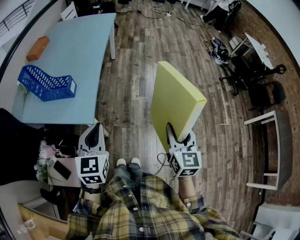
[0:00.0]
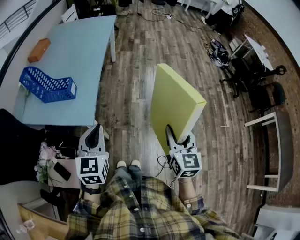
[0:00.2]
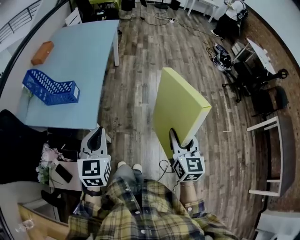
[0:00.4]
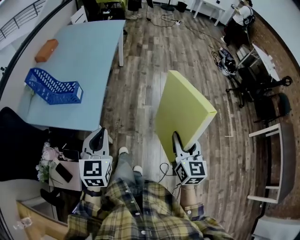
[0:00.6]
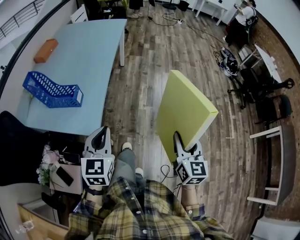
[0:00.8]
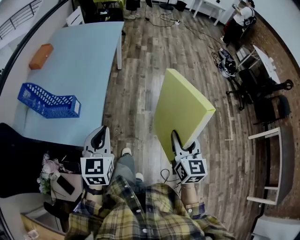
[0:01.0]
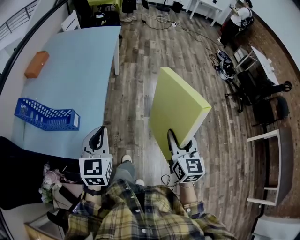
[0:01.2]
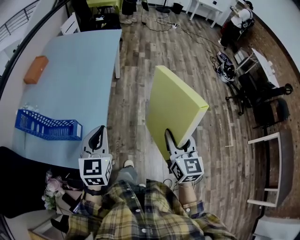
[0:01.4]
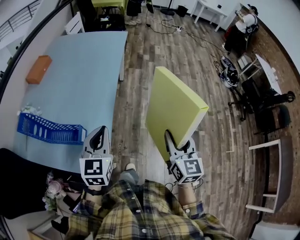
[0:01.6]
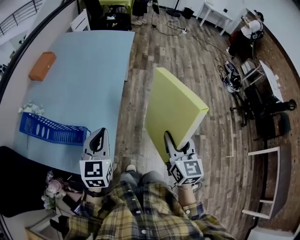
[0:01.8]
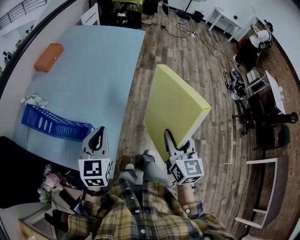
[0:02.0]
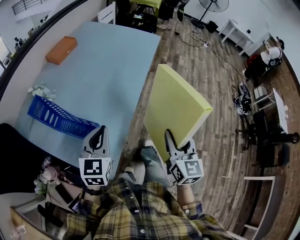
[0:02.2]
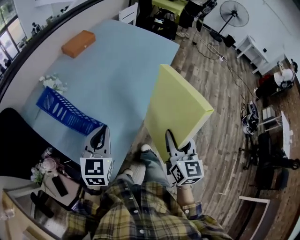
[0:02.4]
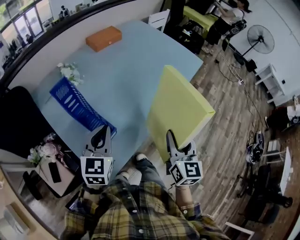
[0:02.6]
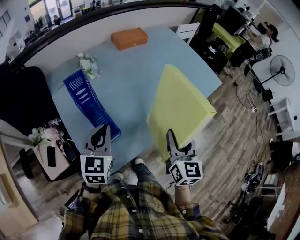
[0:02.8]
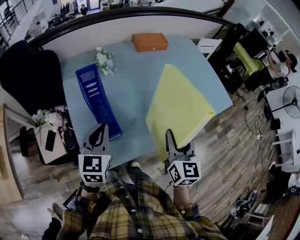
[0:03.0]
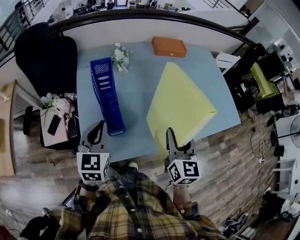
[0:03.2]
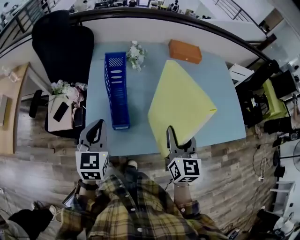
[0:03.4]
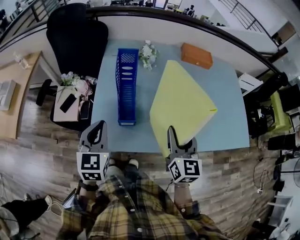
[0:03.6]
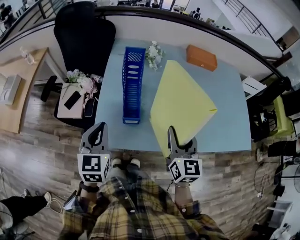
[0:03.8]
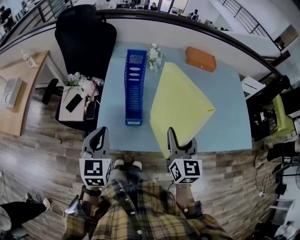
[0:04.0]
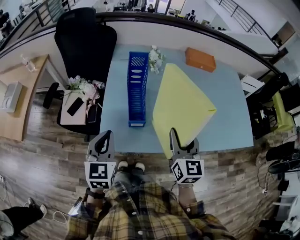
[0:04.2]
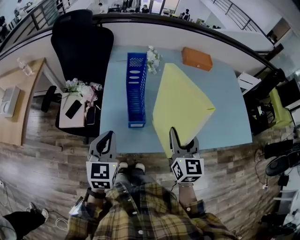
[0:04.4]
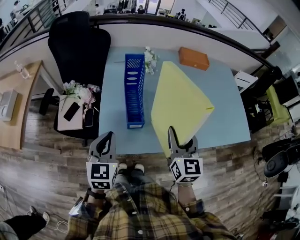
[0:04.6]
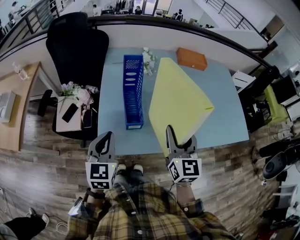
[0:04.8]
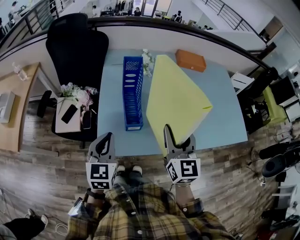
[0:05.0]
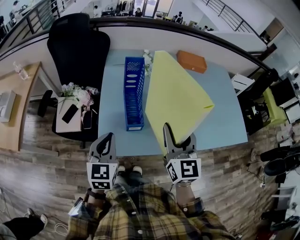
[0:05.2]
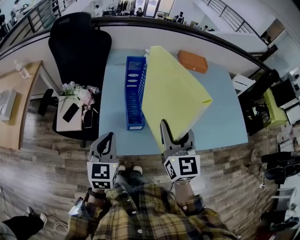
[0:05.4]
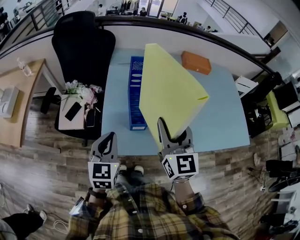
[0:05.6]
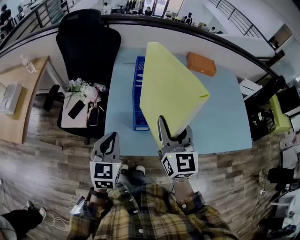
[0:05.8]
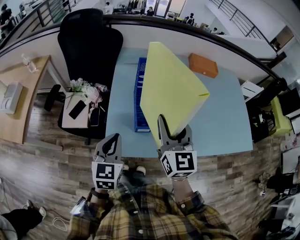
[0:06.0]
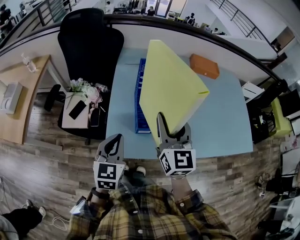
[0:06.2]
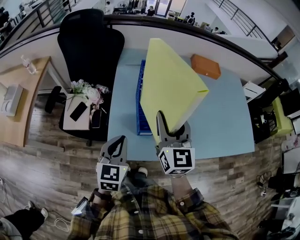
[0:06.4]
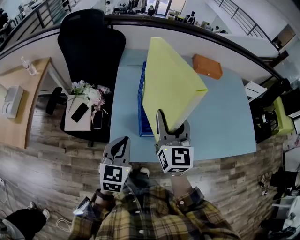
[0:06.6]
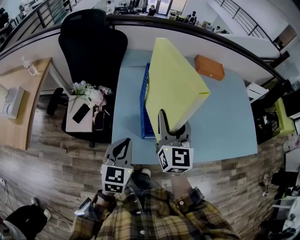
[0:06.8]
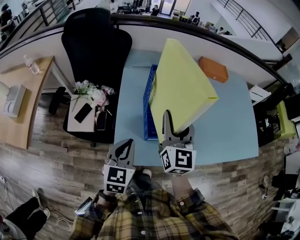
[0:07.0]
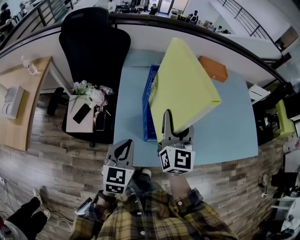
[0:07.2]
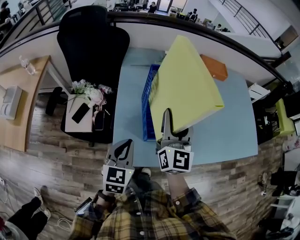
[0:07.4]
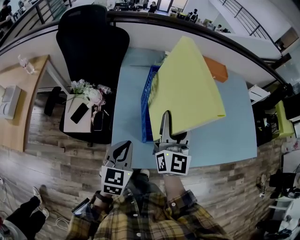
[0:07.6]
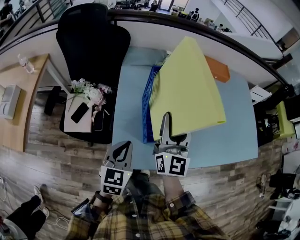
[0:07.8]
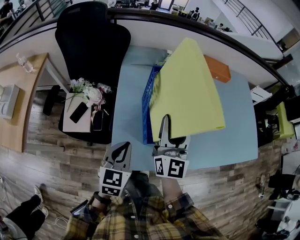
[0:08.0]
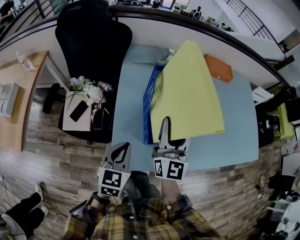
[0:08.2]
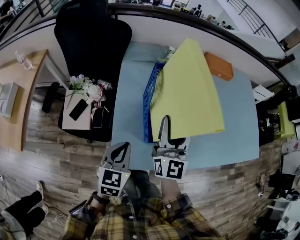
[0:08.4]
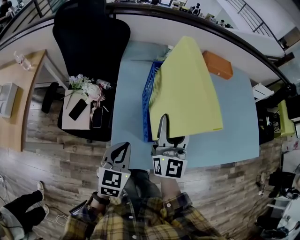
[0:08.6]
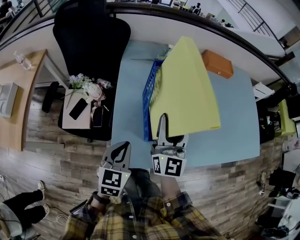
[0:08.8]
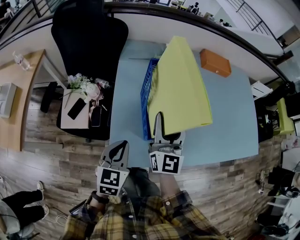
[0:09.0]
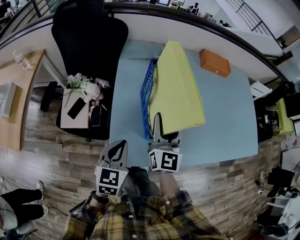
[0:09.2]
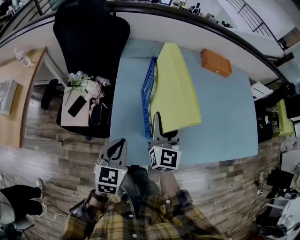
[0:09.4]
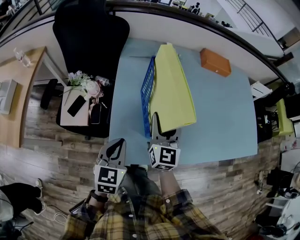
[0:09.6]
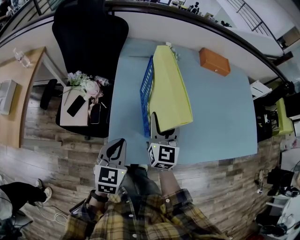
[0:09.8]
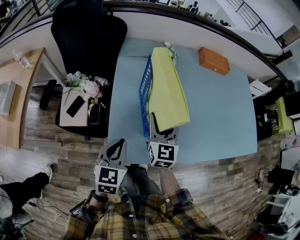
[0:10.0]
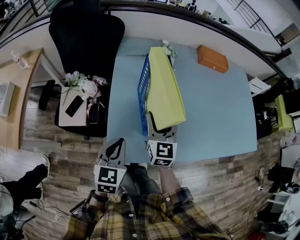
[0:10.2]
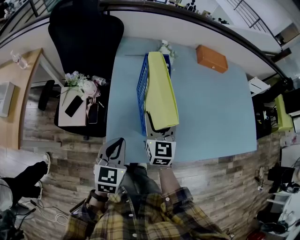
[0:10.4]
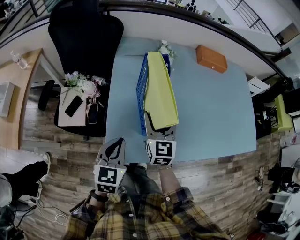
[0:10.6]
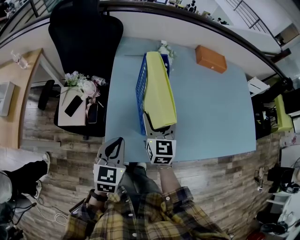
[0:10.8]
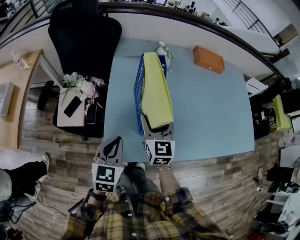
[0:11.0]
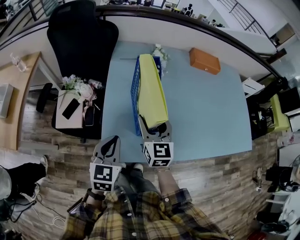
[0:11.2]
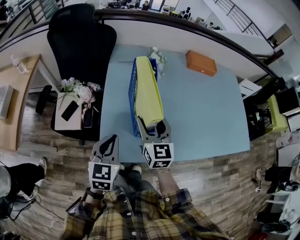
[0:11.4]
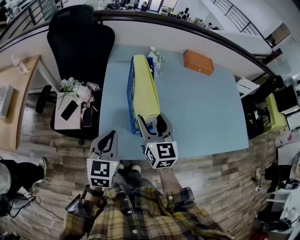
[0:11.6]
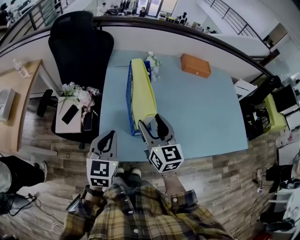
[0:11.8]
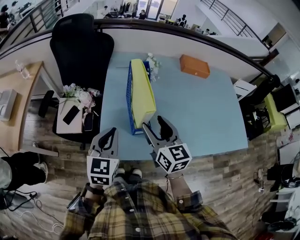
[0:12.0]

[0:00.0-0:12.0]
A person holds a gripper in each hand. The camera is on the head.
0:00.0 to 0:01.6: The two grippers go approximately 25 cm forward.
0:01.6 to 0:03.0: The right gripper changes place by about 35 cm, and turns by about 60 degrees, while the left gripper ends up some 20 cm from where it was, and turns by about 60 degrees.
0:03.0 to 0:04.4: The left gripper ends up roughly 15 cm from where it was, and turns by some 20 degrees, while the right gripper changes place by approximately 10 cm, and changes its angle by approximately 30 degrees.
0:04.4 to 0:06.0: The right gripper heads to the left and upward, covering approximately 10 cm.
0:06.0 to 0:07.6: The right gripper moves forward, some 5 cm, while the left gripper shifts by some 5 cm.
0:07.6 to 0:09.0: The right gripper is displaced downward by about 5 cm.
0:09.0 to 0:10.4: The right gripper shifts roughly 10 cm downward, and changes its angle by approximately 20 degrees.
0:10.4 to 0:12.0: The left gripper heads upward, covering about 10 cm, while the right gripper goes approximately 10 cm upward and backward.

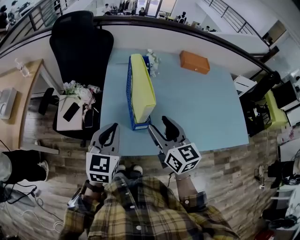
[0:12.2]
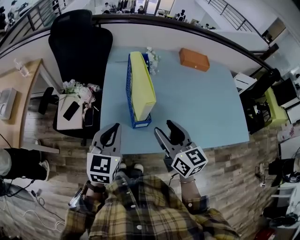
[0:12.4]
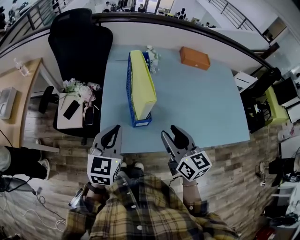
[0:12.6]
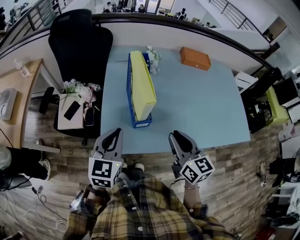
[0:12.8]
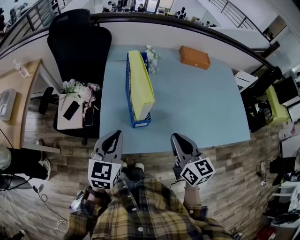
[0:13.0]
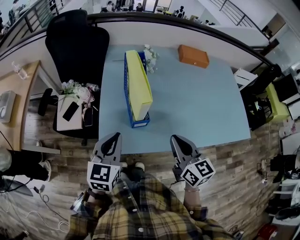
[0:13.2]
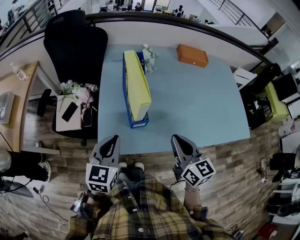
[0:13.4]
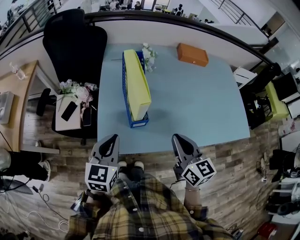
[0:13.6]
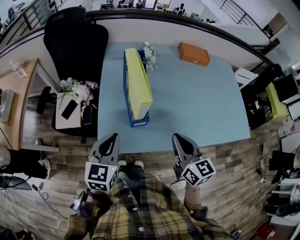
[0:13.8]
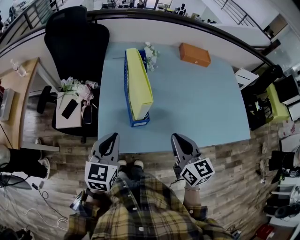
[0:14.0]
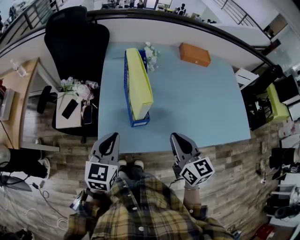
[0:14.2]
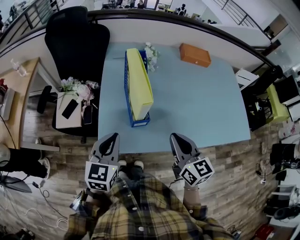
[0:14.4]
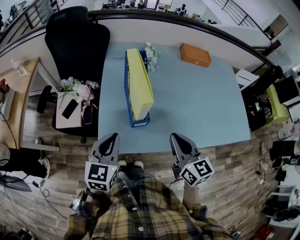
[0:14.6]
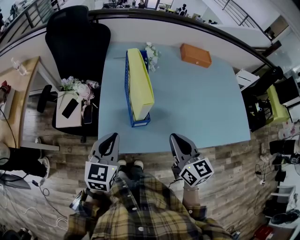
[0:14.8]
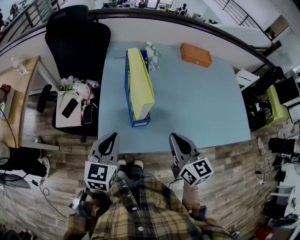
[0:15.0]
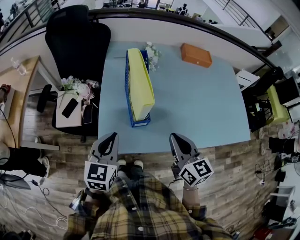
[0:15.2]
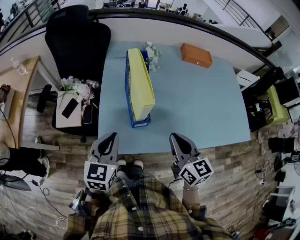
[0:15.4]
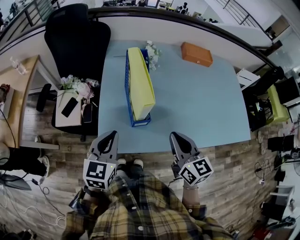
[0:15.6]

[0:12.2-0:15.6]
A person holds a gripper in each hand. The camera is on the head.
0:12.2 to 0:13.8: The right gripper shifts about 10 cm to the right and backward, and closes its fingers.
0:13.8 to 0:15.6: The grippers make only small movements.

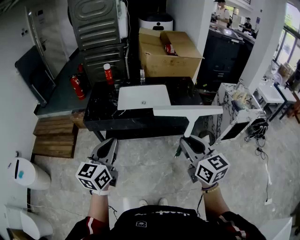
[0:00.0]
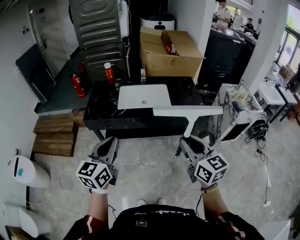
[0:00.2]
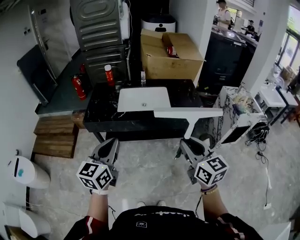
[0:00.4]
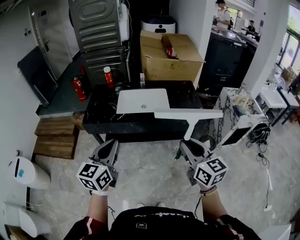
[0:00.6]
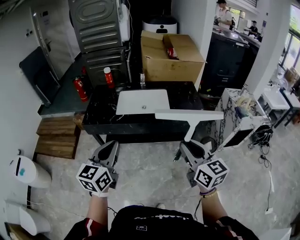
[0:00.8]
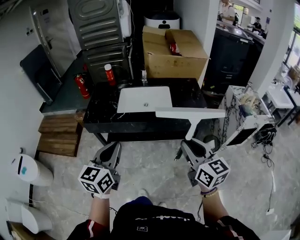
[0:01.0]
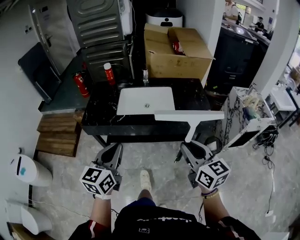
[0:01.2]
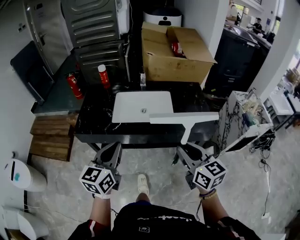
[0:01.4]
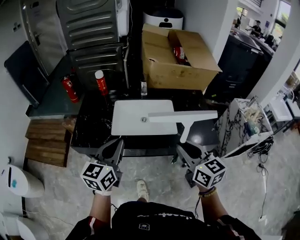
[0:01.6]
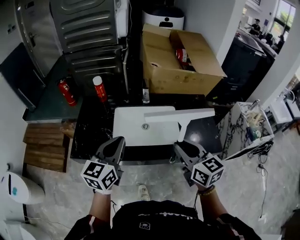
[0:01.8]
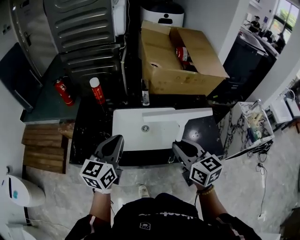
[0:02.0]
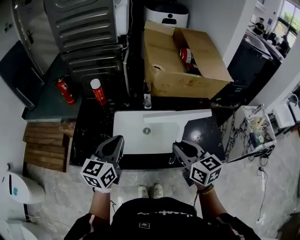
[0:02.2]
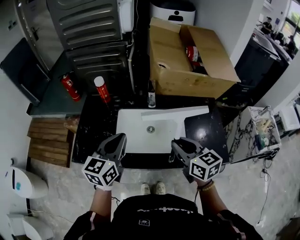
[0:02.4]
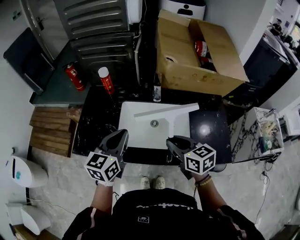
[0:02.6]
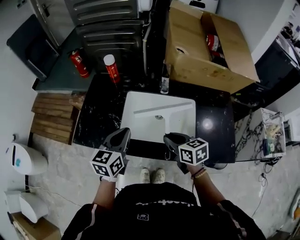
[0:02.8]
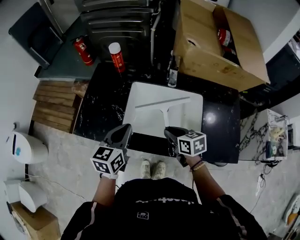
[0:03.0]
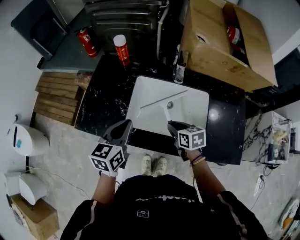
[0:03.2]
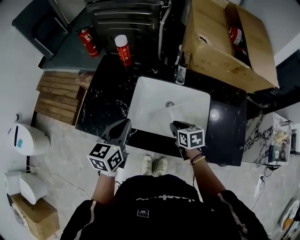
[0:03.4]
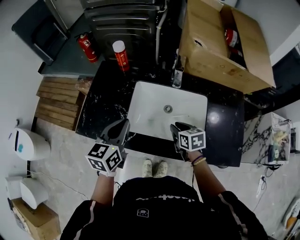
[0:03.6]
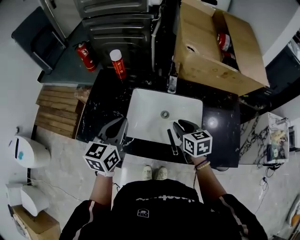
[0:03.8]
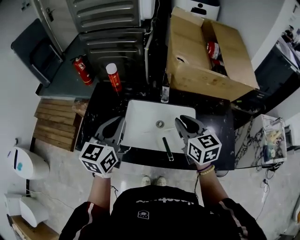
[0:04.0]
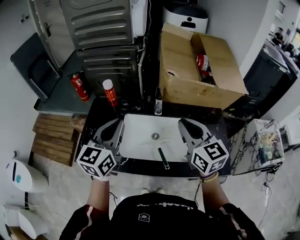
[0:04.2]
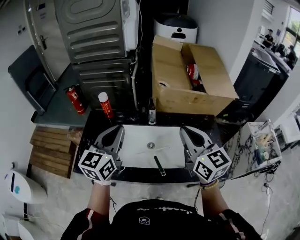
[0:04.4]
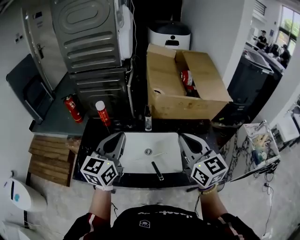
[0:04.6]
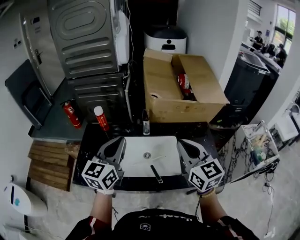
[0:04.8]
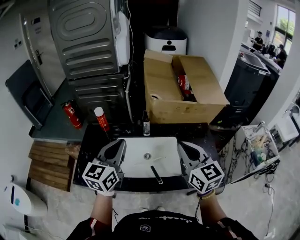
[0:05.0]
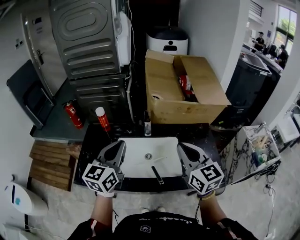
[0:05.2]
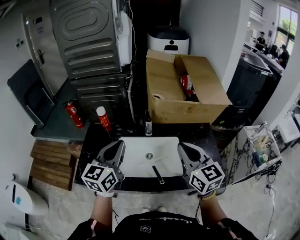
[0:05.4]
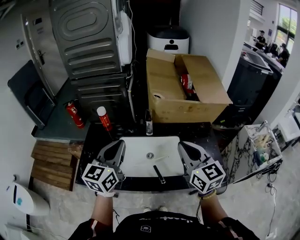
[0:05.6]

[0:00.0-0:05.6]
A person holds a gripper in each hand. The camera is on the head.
0:00.0 to 0:01.4: Both grippers move forward, approximately 20 cm.
0:01.4 to 0:02.8: The right gripper moves forward and downward, roughly 35 cm, and rotates about 30 degrees; the left gripper travels forward by some 30 cm.
0:02.8 to 0:04.2: Both grippers move upward, some 20 cm. The right gripper rotates some 40 degrees.
0:04.2 to 0:05.6: The right gripper shifts by about 5 cm.

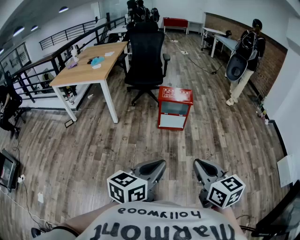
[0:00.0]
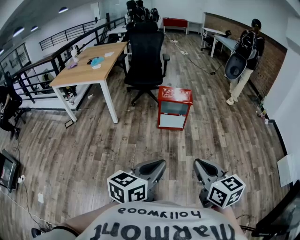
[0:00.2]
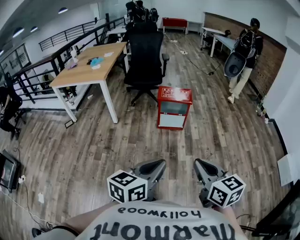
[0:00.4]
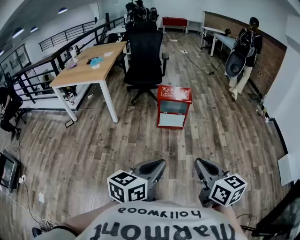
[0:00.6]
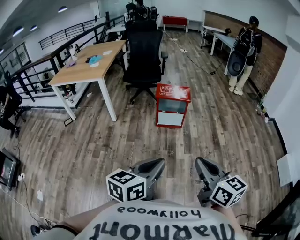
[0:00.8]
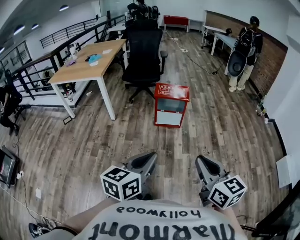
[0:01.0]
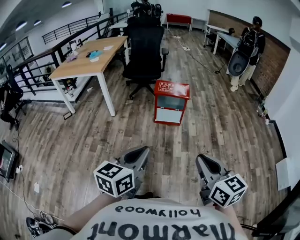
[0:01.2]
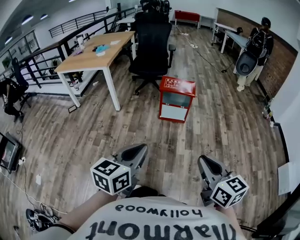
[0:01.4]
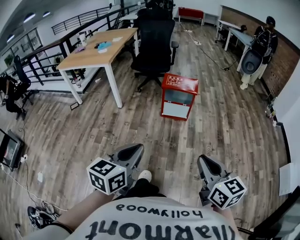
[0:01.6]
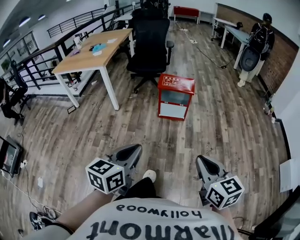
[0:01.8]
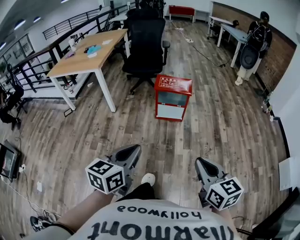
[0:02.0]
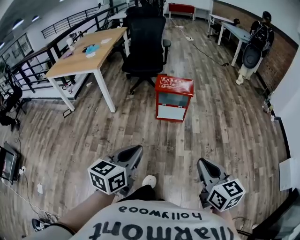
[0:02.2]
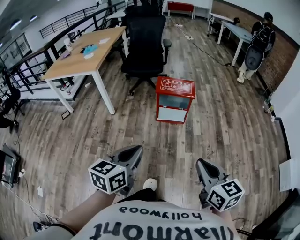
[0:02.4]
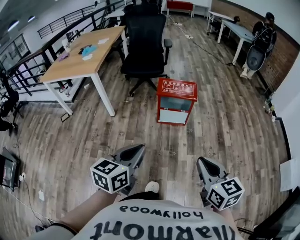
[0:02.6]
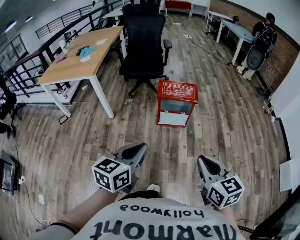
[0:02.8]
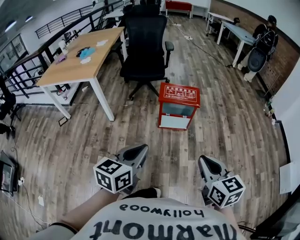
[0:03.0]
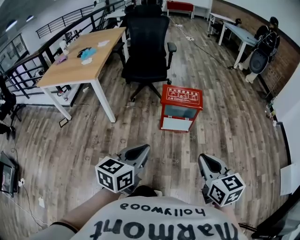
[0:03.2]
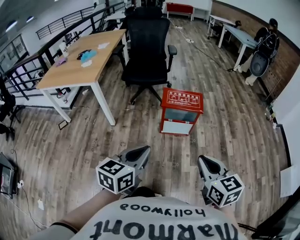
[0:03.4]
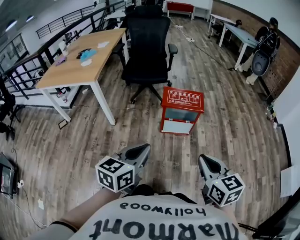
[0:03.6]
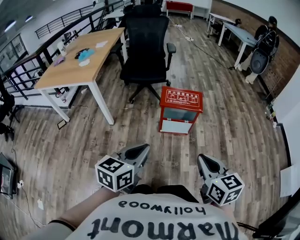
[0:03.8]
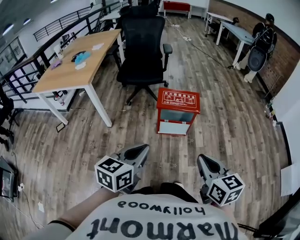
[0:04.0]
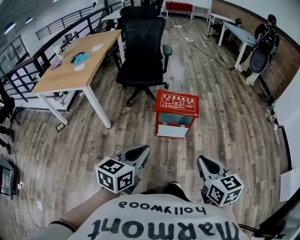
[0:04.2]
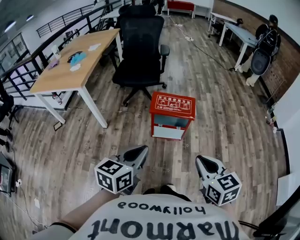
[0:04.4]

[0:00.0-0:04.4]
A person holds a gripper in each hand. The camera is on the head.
0:00.0 to 0:01.4: The right gripper goes approximately 10 cm to the right.
0:01.4 to 0:03.0: Both grippers travel together forward, some 25 cm.
0:03.0 to 0:04.4: The right gripper shifts roughly 15 cm forward, while the left gripper goes roughly 15 cm forward and to the right.
